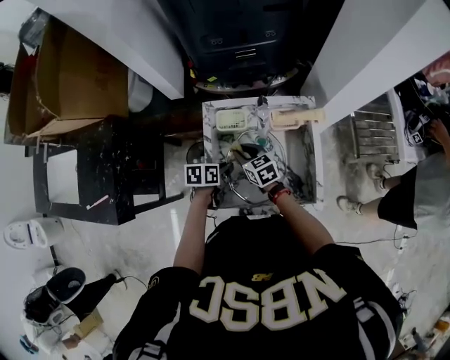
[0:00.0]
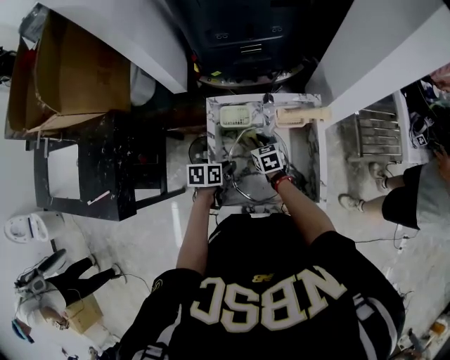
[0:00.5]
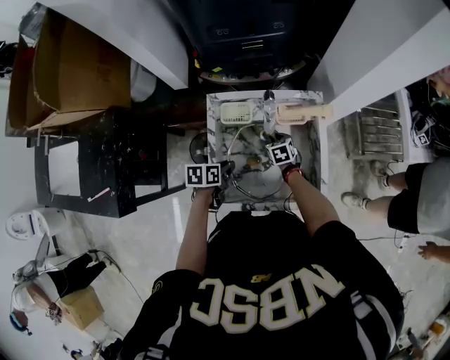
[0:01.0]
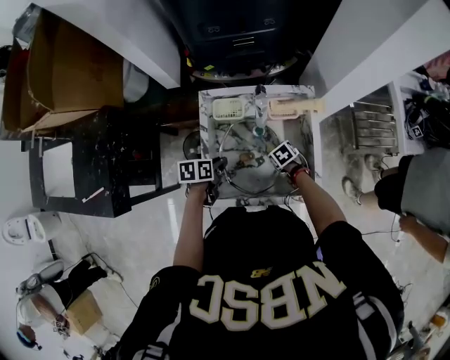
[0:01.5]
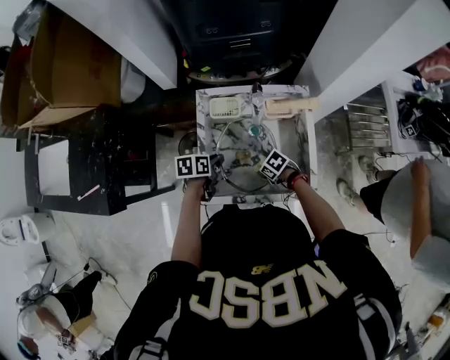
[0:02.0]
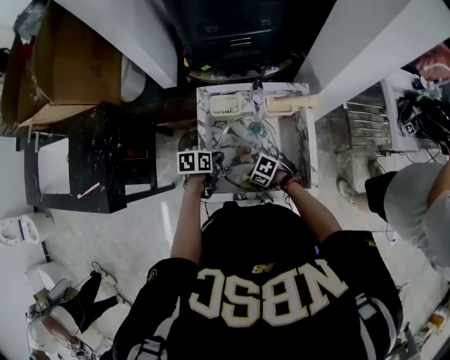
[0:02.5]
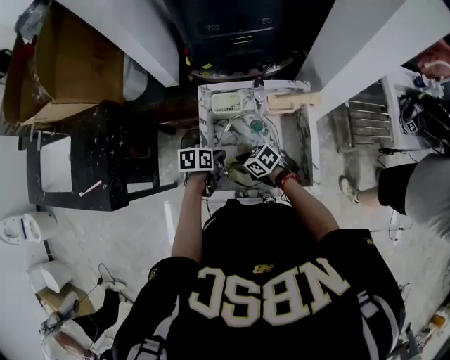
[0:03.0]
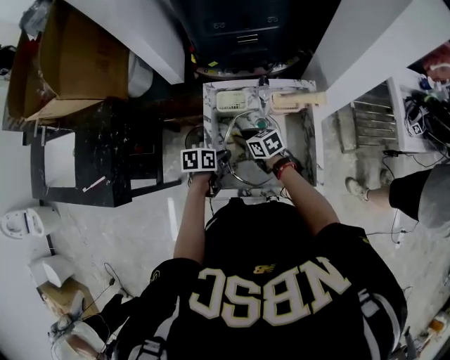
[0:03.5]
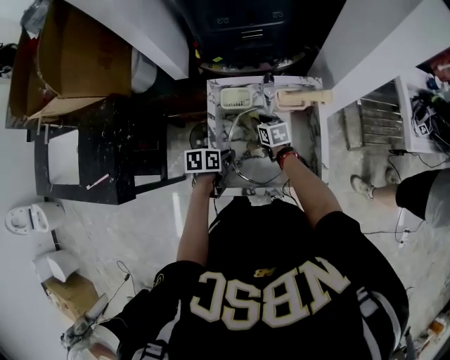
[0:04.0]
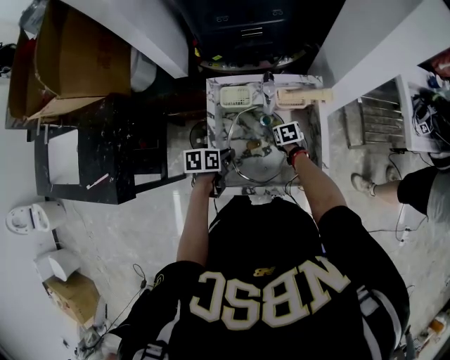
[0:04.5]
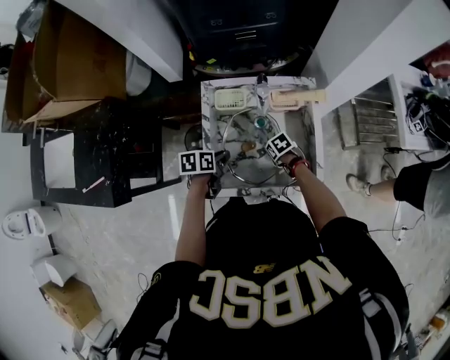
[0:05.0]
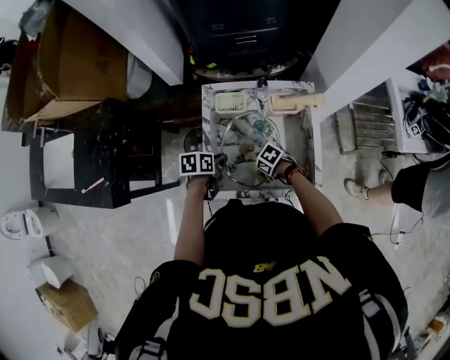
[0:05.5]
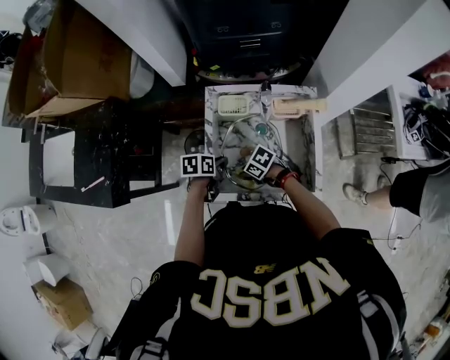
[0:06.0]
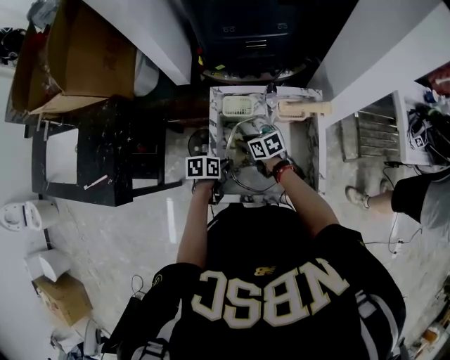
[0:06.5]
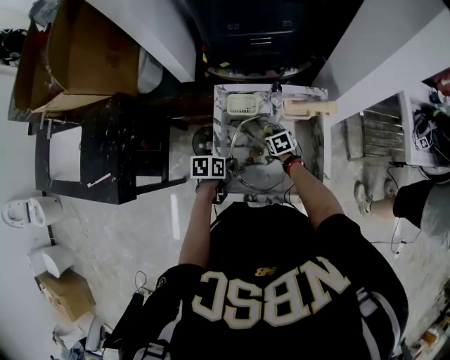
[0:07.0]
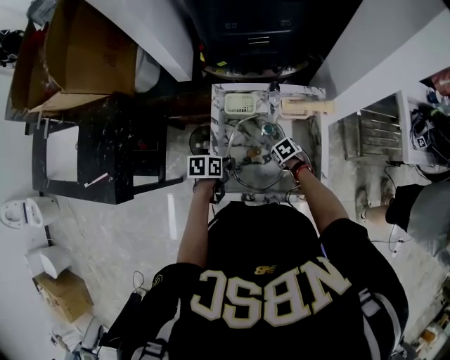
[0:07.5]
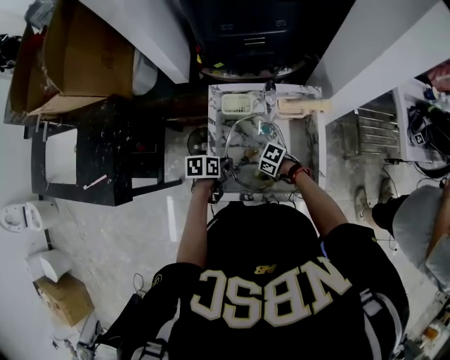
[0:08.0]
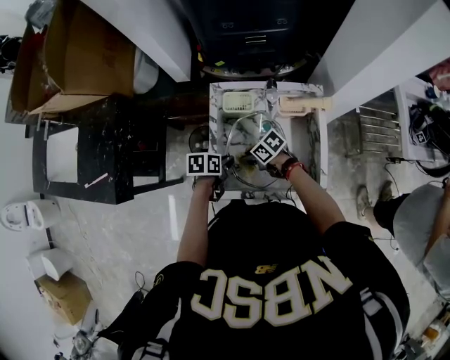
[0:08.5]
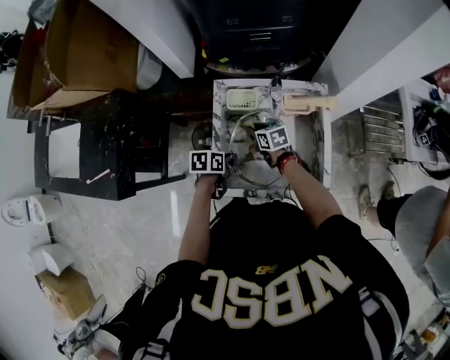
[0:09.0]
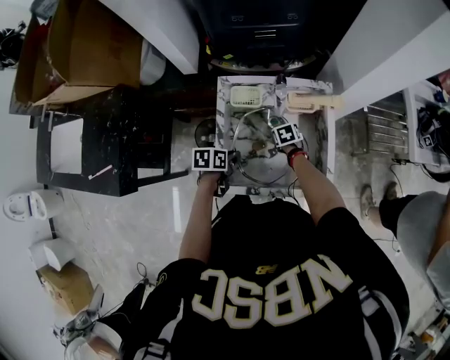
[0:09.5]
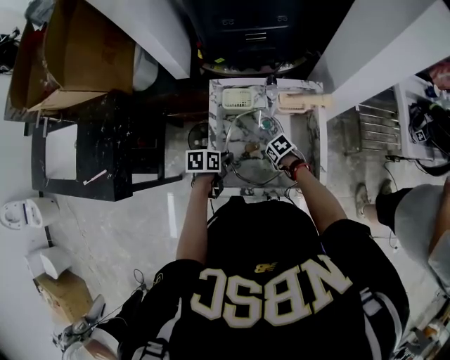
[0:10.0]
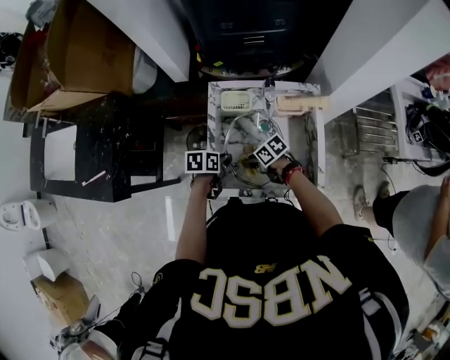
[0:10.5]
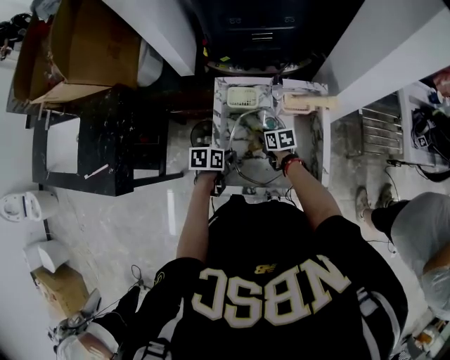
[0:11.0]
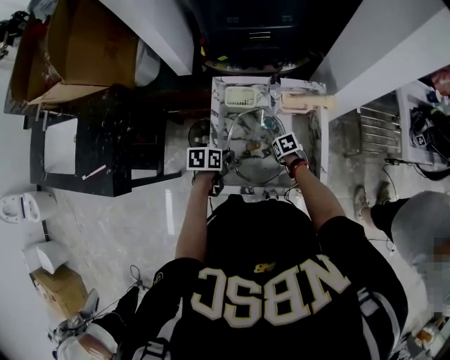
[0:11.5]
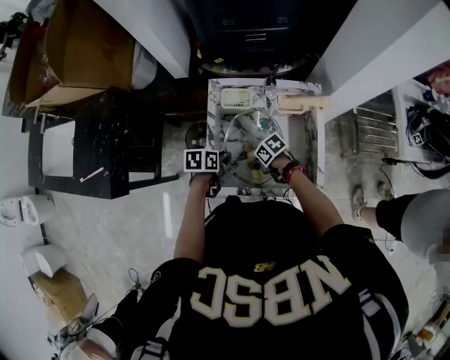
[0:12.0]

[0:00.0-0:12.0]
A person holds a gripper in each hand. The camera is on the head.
0:00.0 to 0:02.0: The right gripper ends up some 20 cm from where it was, and rotates roughly 50 degrees.
0:02.0 to 0:04.0: The right gripper changes place by about 20 cm, and rotates some 50 degrees.
0:04.0 to 0:06.0: The right gripper reaches approximately 10 cm downward, then returns, and turns by some 50 degrees.
0:06.0 to 0:08.0: The right gripper reaches about 10 cm downward, then returns.
0:08.0 to 0:10.0: The right gripper changes its angle by about 30 degrees.
0:10.0 to 0:12.0: The right gripper swings up and down, about 10 cm each way, with 2 reversals.

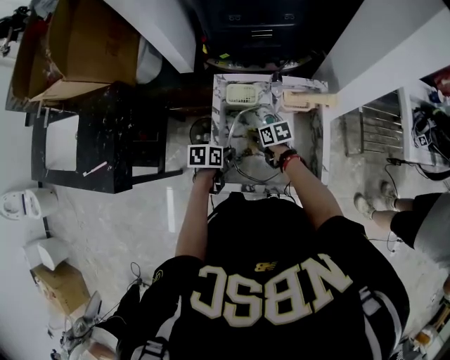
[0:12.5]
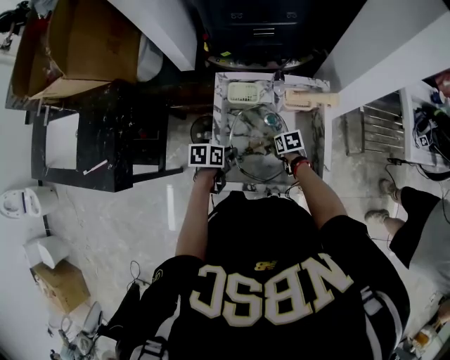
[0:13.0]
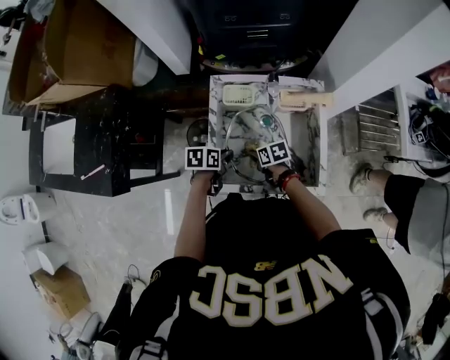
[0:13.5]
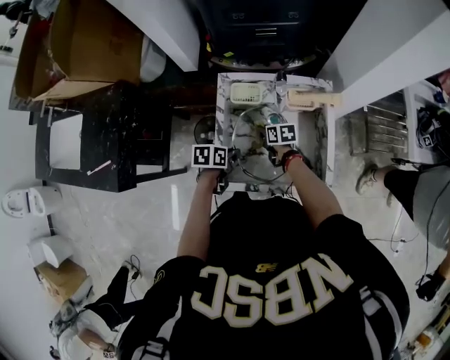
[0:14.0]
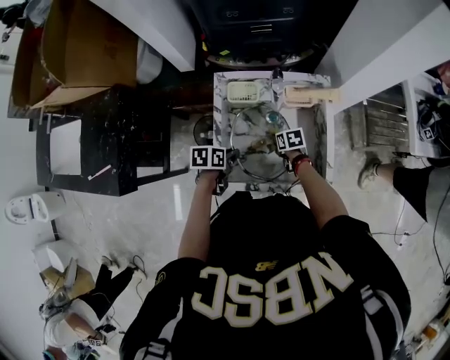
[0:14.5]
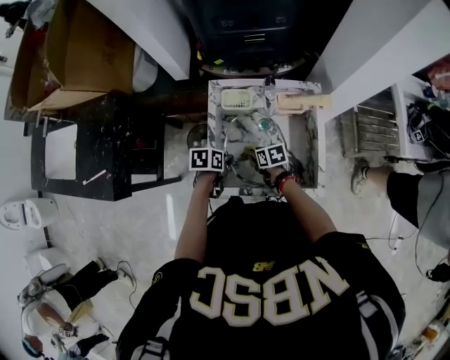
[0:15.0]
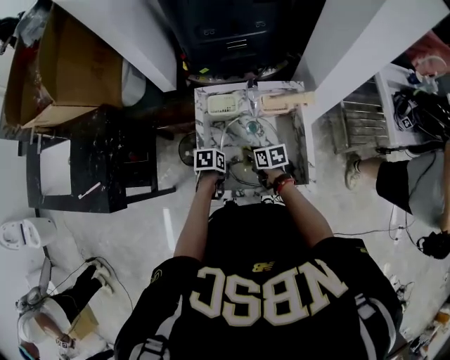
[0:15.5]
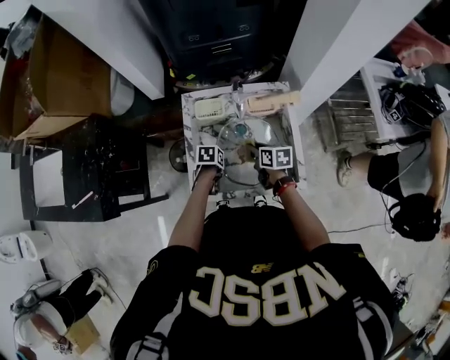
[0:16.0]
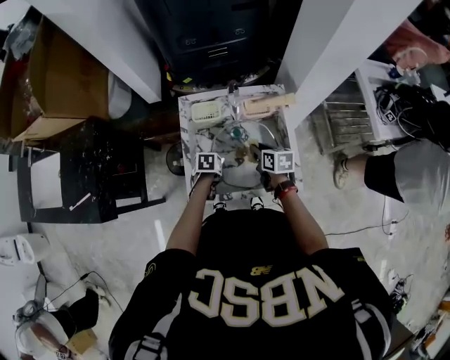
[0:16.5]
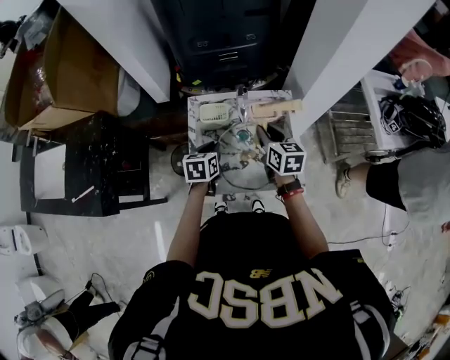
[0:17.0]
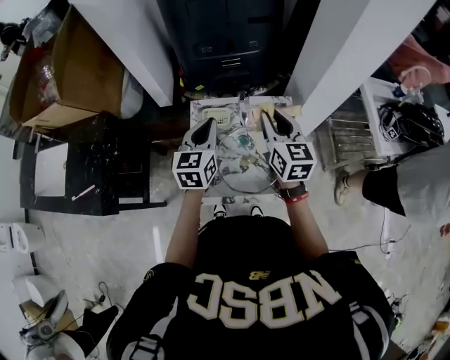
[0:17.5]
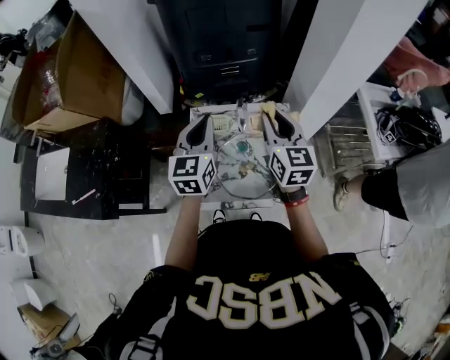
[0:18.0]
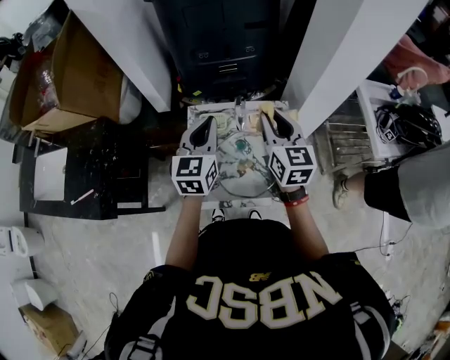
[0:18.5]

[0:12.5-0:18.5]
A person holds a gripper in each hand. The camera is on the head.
0:12.5 to 0:14.5: The right gripper moves left and right over some 10 cm, changing direction 2 times.
0:14.5 to 0:16.5: The right gripper goes some 15 cm upward, and swivels approximately 30 degrees. Meanwhile the left gripper heads downward, covering approximately 5 cm, and turns by roughly 20 degrees.
0:16.5 to 0:18.5: The grippers both shift upward by some 35 cm. The right gripper points its fingers some 30 degrees further upward; the left gripper angles its fingers upward, by roughly 60 degrees, and closes its fingers.

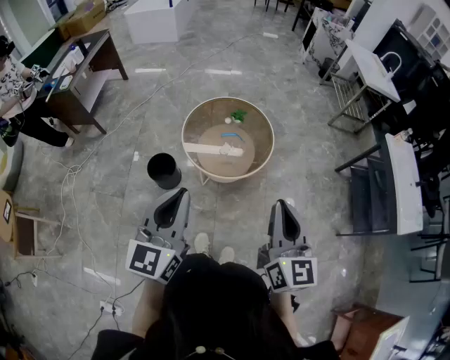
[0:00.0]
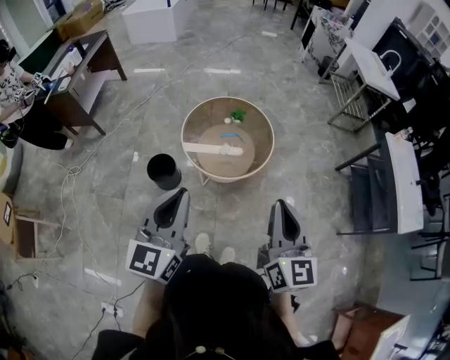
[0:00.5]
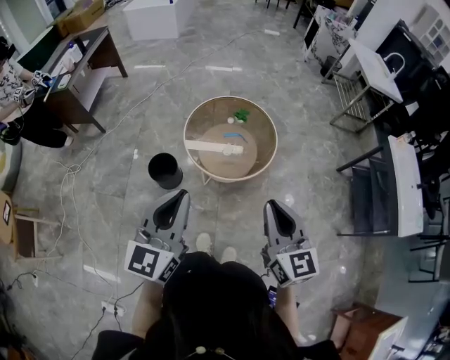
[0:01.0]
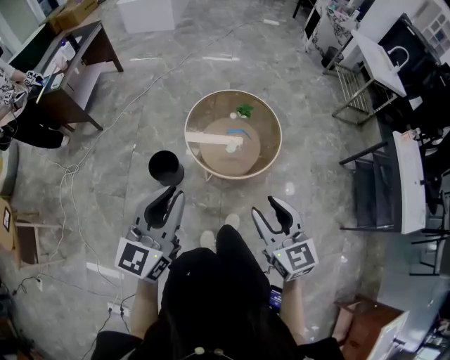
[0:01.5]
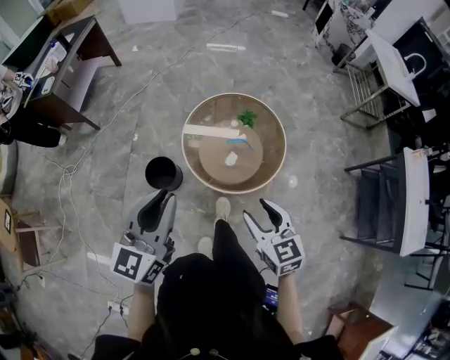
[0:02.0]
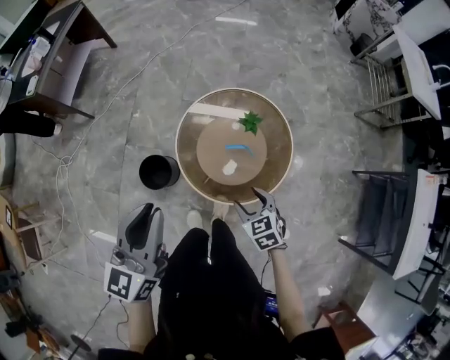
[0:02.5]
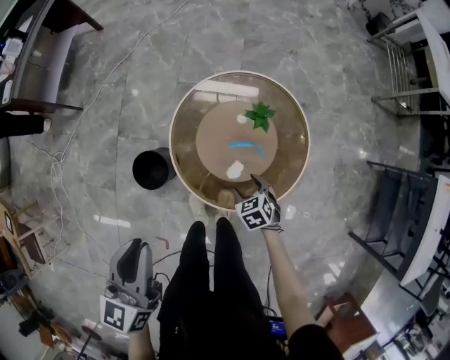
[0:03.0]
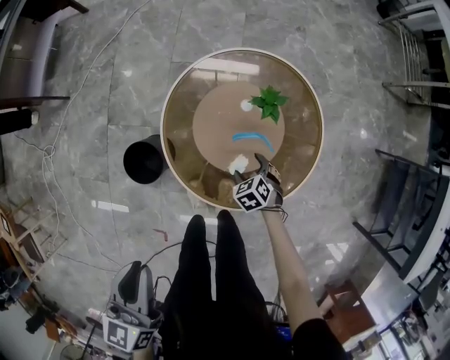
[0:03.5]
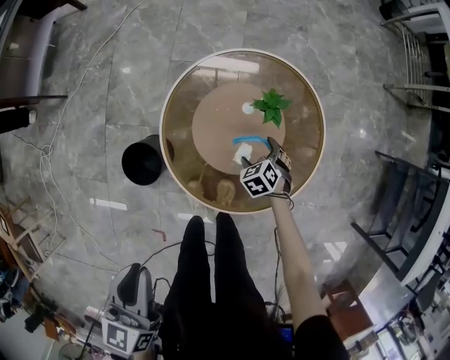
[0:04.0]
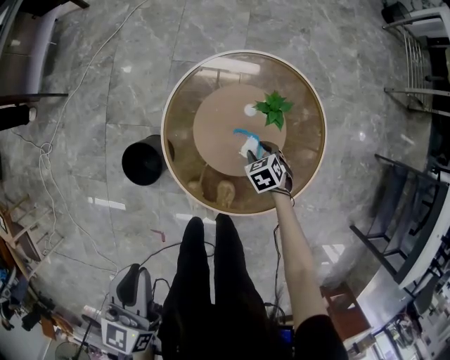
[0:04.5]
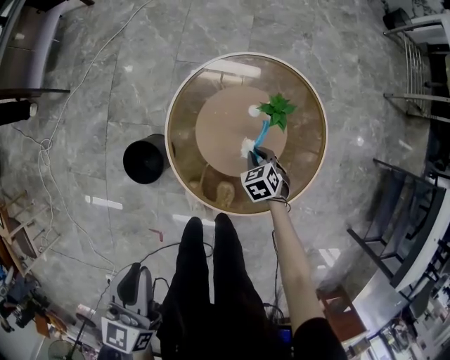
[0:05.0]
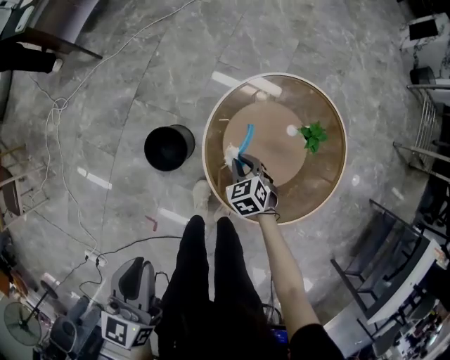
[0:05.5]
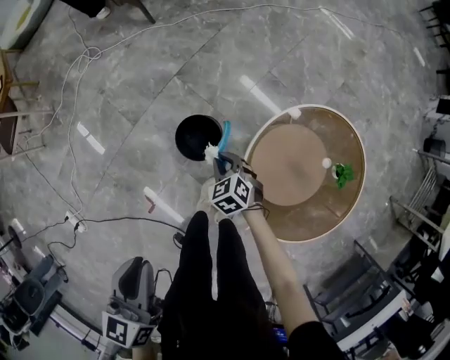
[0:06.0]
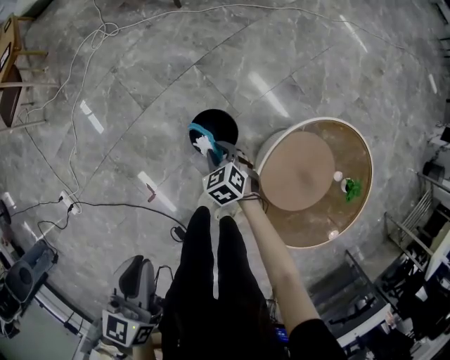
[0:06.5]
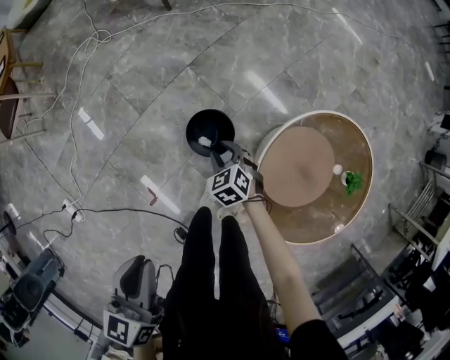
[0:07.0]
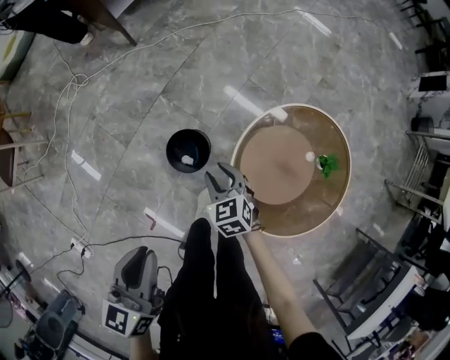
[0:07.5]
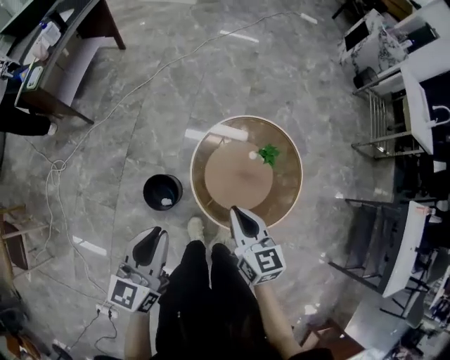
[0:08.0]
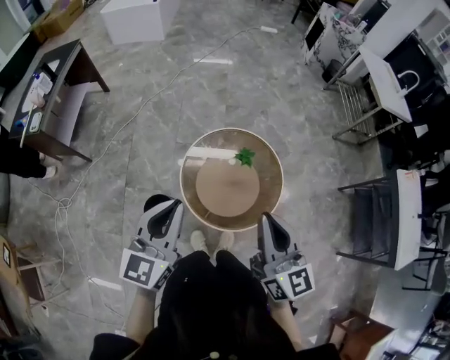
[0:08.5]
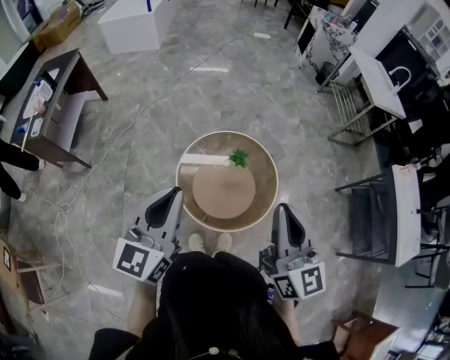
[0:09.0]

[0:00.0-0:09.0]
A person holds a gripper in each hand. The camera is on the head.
0:00.0 to 0:02.0: The left gripper moves forward, roughly 15 cm. The right gripper travels downward, forward and to the left by roughly 25 cm, turns by some 40 degrees, and opens its fingers.
0:02.0 to 0:04.5: The right gripper moves downward and forward, approximately 60 cm, angles its fingers downward, by some 40 degrees, and opens, then closes again, while the left gripper moves downward and forward, about 25 cm, and swivels roughly 30 degrees.
0:04.5 to 0:07.0: The left gripper shifts by approximately 25 cm, and changes its angle by about 40 degrees. Meanwhile the right gripper changes place by approximately 50 cm, and twists approximately 40 degrees counterclockwise, seen from behind.
0:07.0 to 0:09.0: The left gripper shifts by roughly 40 cm, and turns by roughly 70 degrees; the right gripper shifts about 60 cm upward, and points its fingers approximately 60 degrees further upward.
